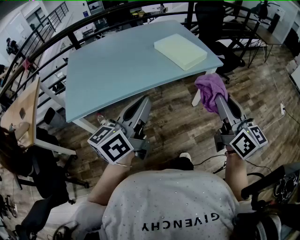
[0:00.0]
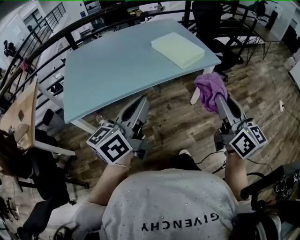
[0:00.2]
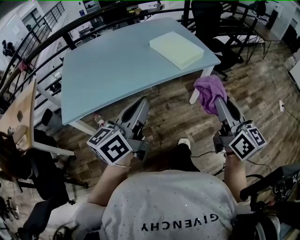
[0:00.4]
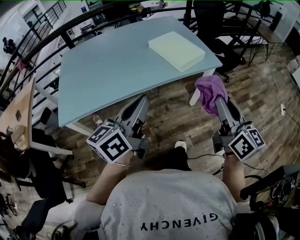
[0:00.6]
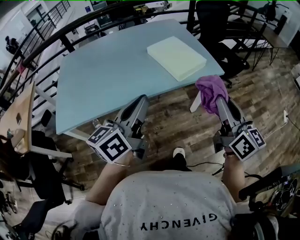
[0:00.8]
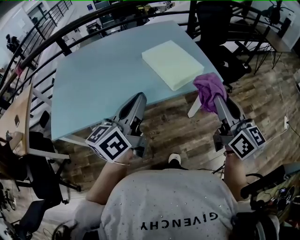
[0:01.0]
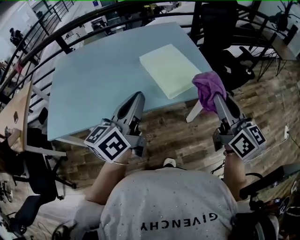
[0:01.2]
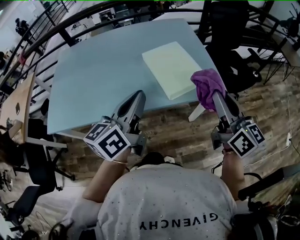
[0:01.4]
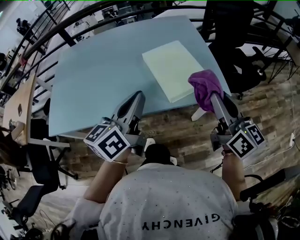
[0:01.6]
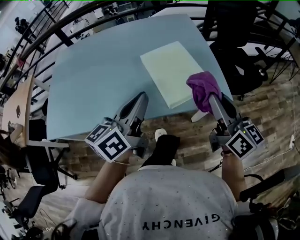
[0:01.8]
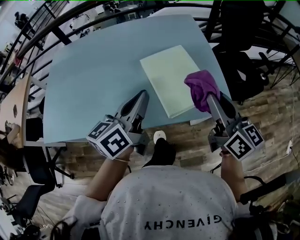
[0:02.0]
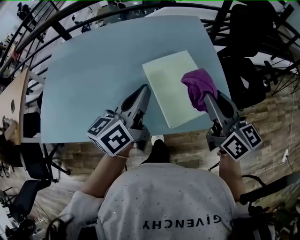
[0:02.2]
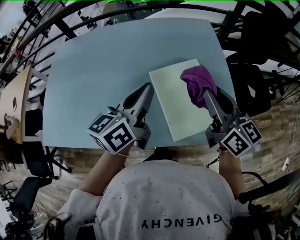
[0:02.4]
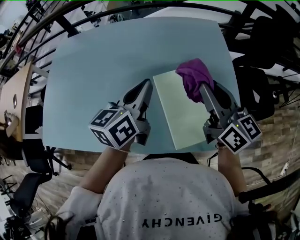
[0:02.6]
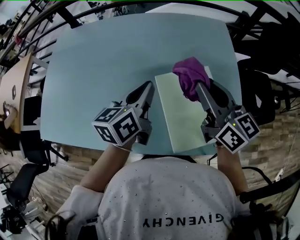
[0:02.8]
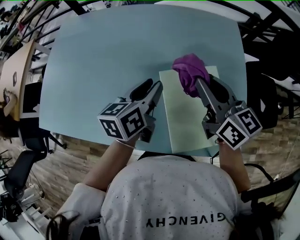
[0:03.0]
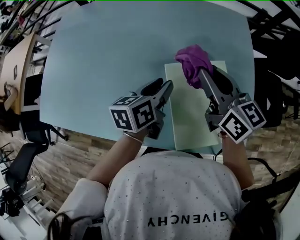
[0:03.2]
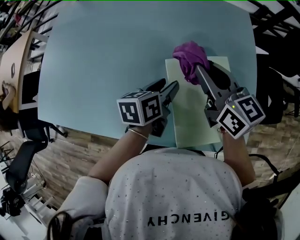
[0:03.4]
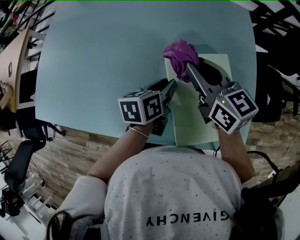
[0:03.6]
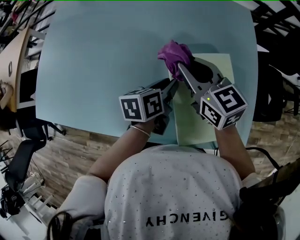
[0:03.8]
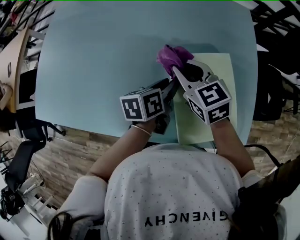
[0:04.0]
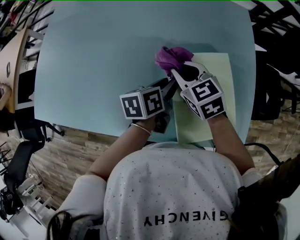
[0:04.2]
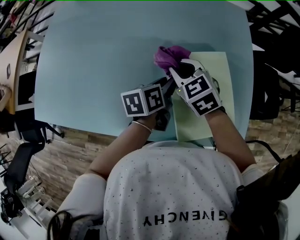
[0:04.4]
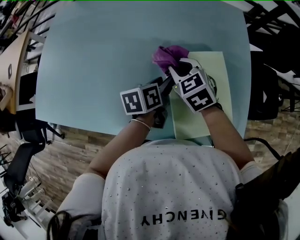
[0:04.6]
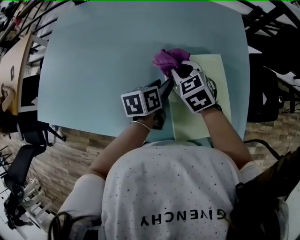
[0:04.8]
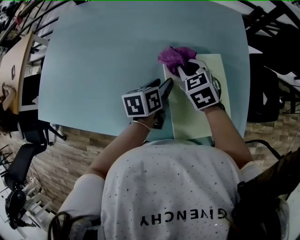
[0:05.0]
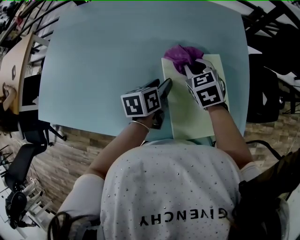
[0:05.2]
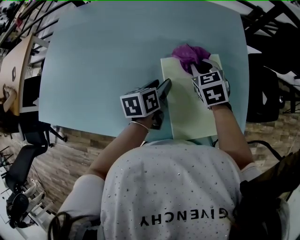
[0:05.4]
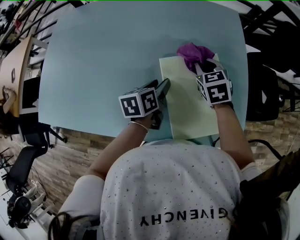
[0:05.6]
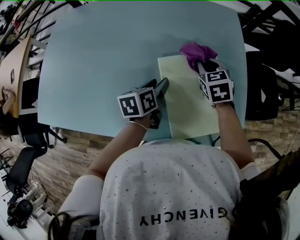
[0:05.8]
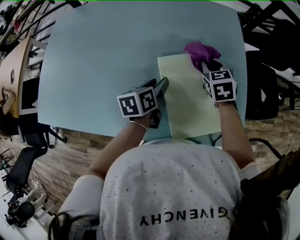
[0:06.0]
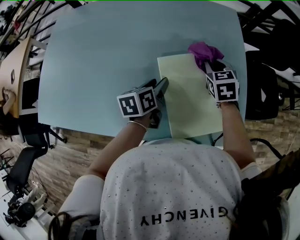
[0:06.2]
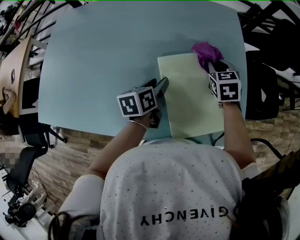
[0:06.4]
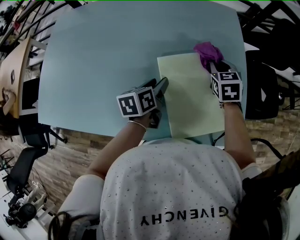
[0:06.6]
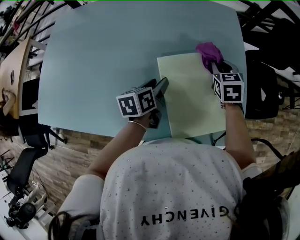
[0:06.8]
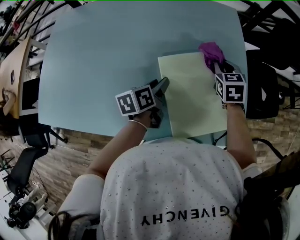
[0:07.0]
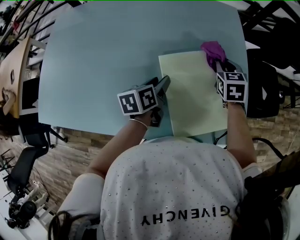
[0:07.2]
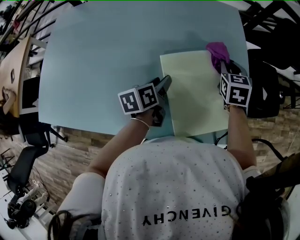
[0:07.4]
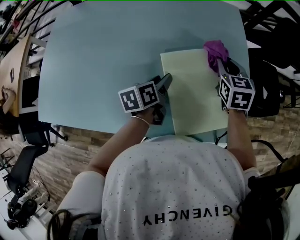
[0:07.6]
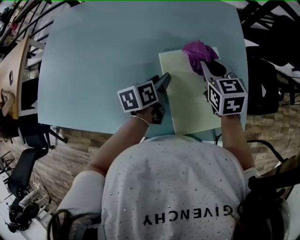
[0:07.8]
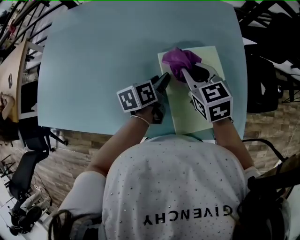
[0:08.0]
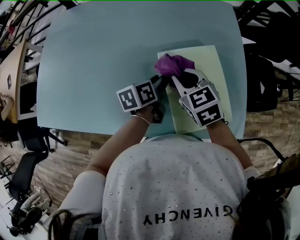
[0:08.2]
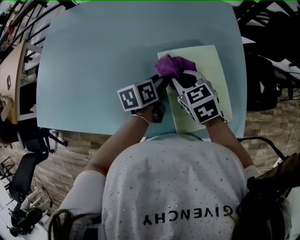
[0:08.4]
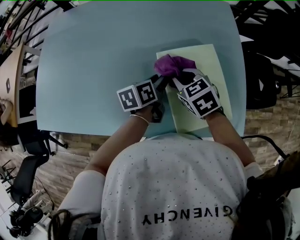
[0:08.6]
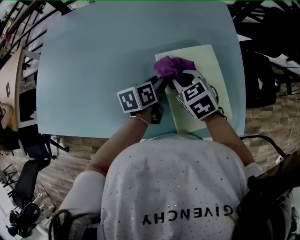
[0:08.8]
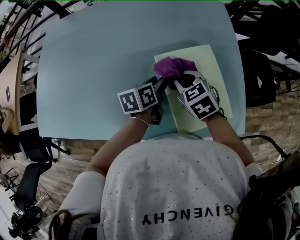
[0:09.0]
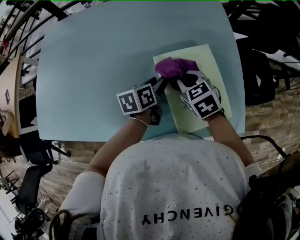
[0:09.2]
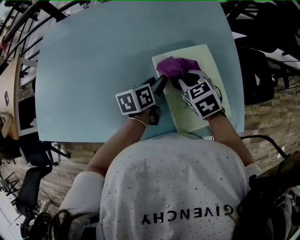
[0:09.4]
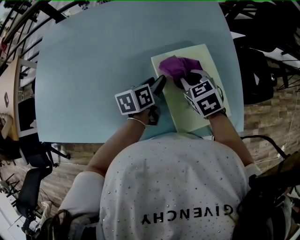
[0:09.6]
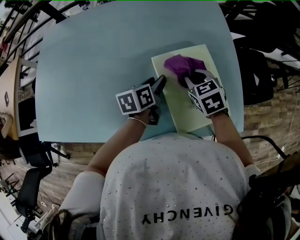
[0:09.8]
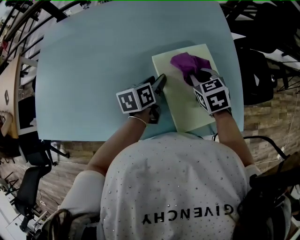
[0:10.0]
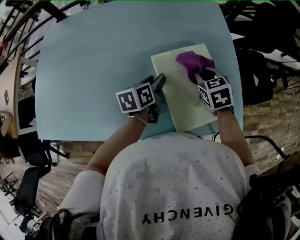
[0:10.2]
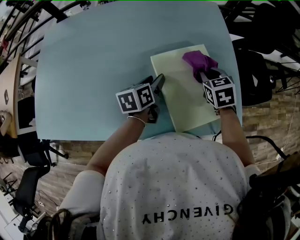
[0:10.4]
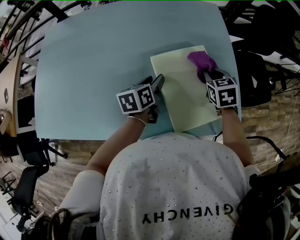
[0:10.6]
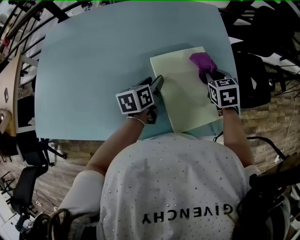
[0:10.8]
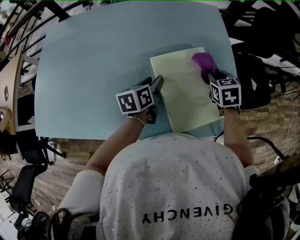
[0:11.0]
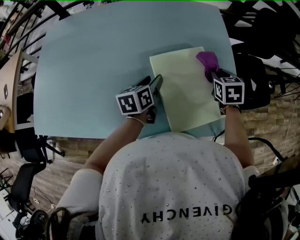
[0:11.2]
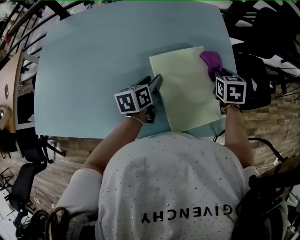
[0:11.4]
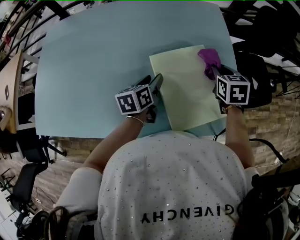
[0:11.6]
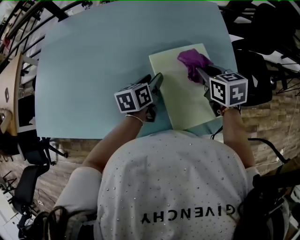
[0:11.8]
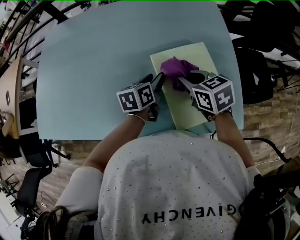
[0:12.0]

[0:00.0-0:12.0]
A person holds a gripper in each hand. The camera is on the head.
0:00.0 to 0:01.6: The left gripper heads forward and to the right, covering about 35 cm, while the right gripper shifts approximately 35 cm forward.
0:01.6 to 0:03.0: The left gripper moves forward and downward, roughly 35 cm, changes its angle by some 30 degrees, and opens its fingers. Meanwhile the right gripper goes roughly 35 cm forward, and turns by some 30 degrees.
0:03.0 to 0:04.4: The left gripper moves downward, approximately 10 cm, and rotates approximately 20 degrees; the right gripper goes roughly 20 cm downward and to the left, and tips its fingers downward by roughly 30 degrees.
0:04.4 to 0:06.0: The right gripper shifts approximately 15 cm to the right, and changes its angle by about 20 degrees.
0:06.0 to 0:07.6: The right gripper changes place by approximately 5 cm.
0:07.6 to 0:09.0: The right gripper moves to the left and backward, approximately 15 cm, and turns by roughly 30 degrees.
0:09.0 to 0:10.4: The right gripper goes some 15 cm to the right.
0:10.4 to 0:12.0: The right gripper shifts approximately 10 cm to the left and backward, and swivels some 20 degrees.

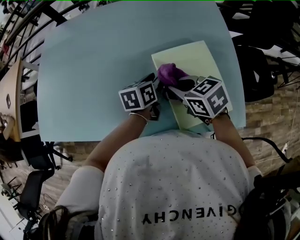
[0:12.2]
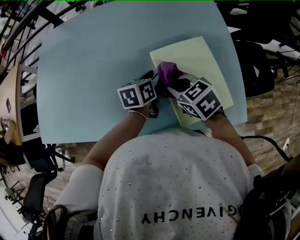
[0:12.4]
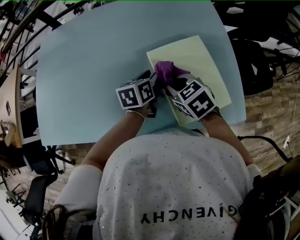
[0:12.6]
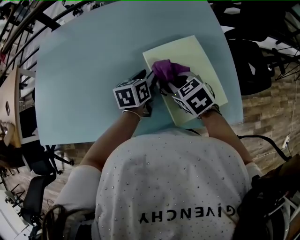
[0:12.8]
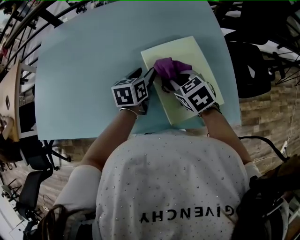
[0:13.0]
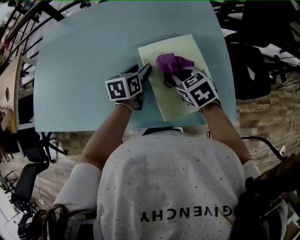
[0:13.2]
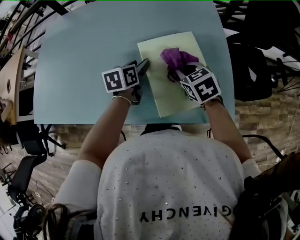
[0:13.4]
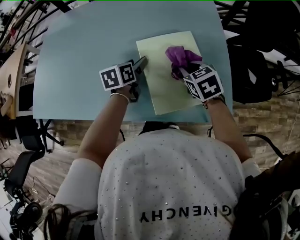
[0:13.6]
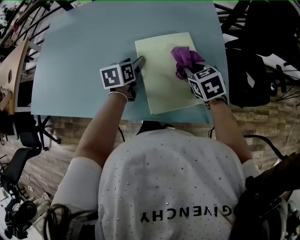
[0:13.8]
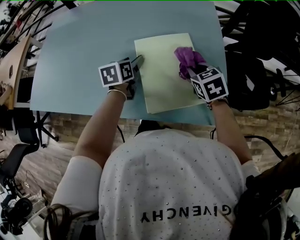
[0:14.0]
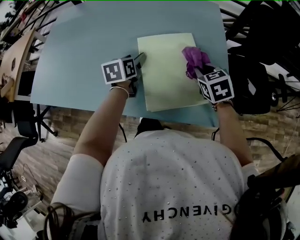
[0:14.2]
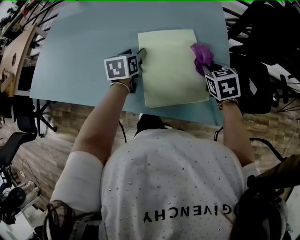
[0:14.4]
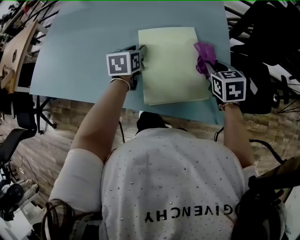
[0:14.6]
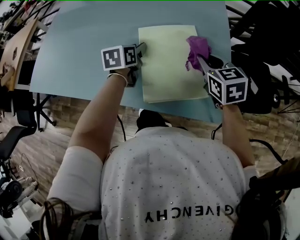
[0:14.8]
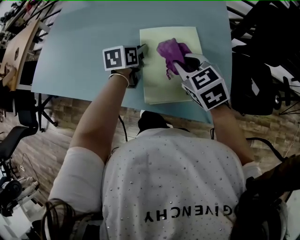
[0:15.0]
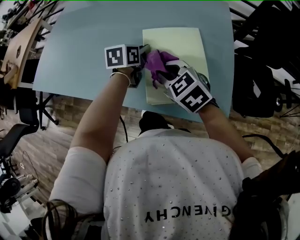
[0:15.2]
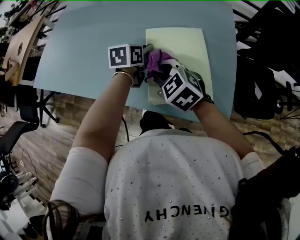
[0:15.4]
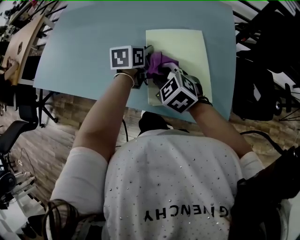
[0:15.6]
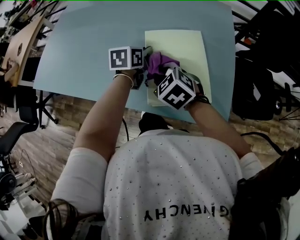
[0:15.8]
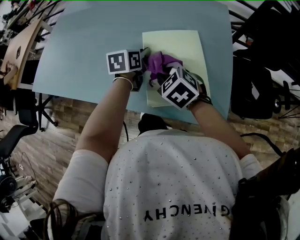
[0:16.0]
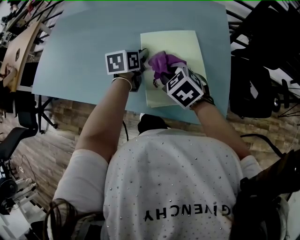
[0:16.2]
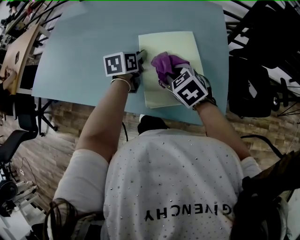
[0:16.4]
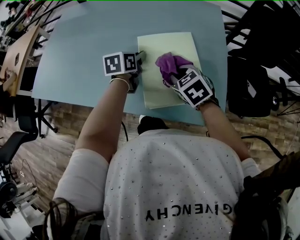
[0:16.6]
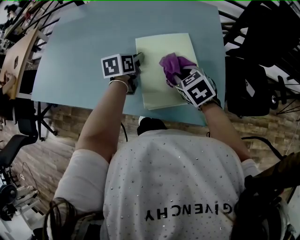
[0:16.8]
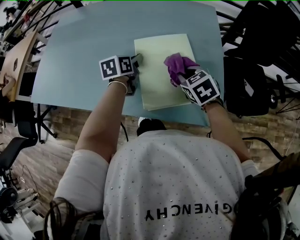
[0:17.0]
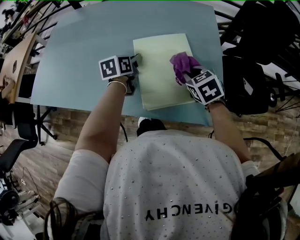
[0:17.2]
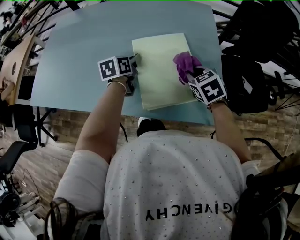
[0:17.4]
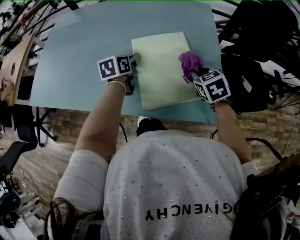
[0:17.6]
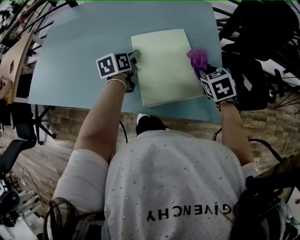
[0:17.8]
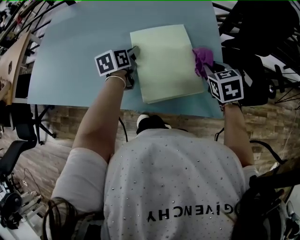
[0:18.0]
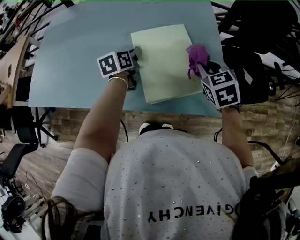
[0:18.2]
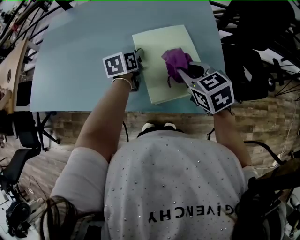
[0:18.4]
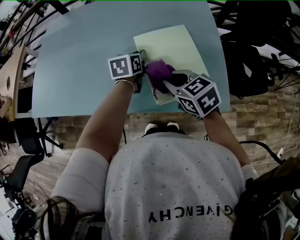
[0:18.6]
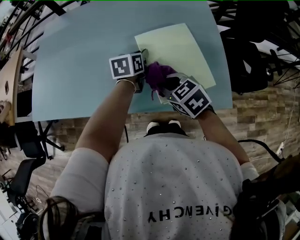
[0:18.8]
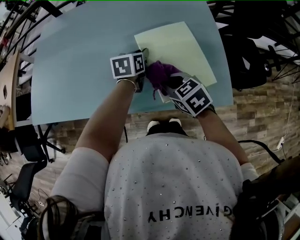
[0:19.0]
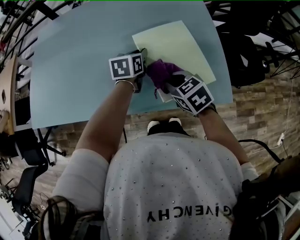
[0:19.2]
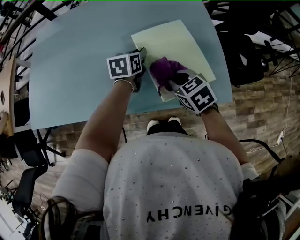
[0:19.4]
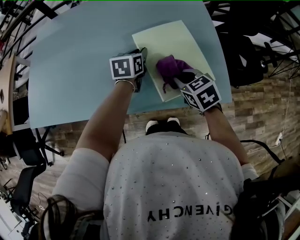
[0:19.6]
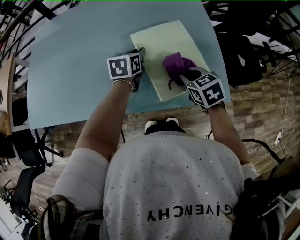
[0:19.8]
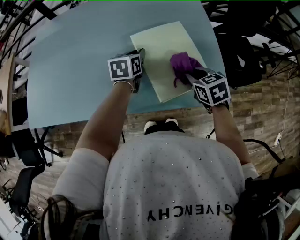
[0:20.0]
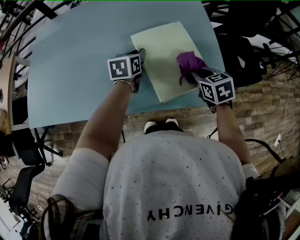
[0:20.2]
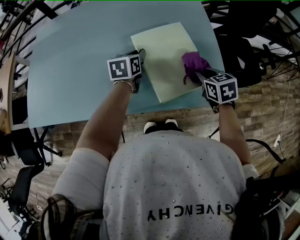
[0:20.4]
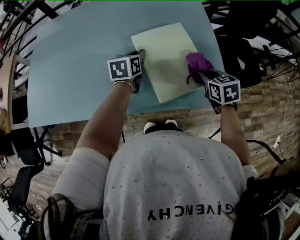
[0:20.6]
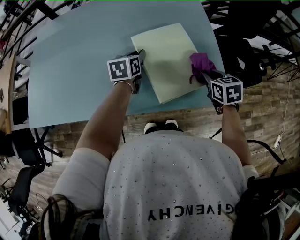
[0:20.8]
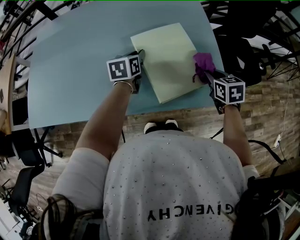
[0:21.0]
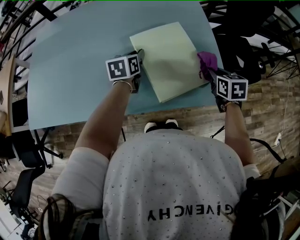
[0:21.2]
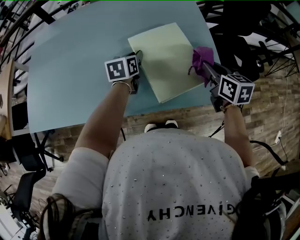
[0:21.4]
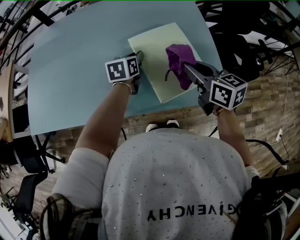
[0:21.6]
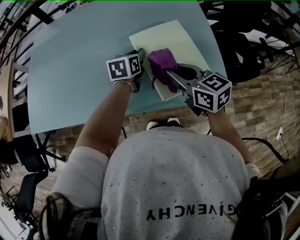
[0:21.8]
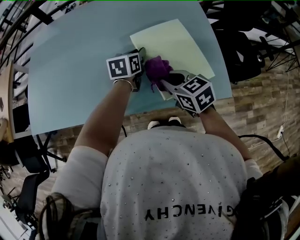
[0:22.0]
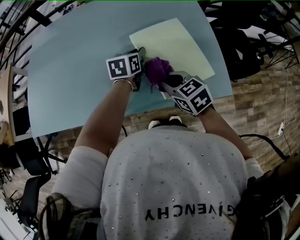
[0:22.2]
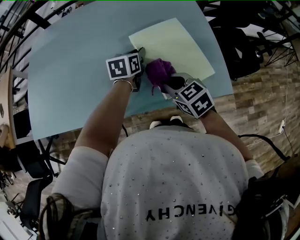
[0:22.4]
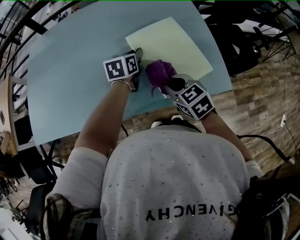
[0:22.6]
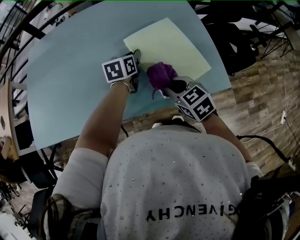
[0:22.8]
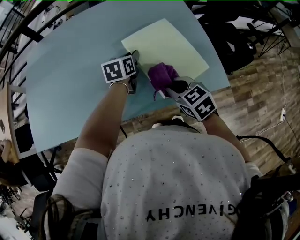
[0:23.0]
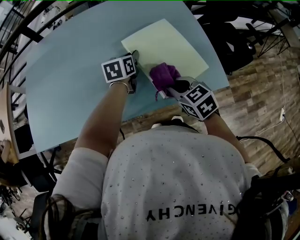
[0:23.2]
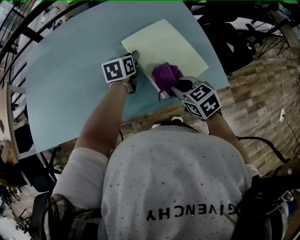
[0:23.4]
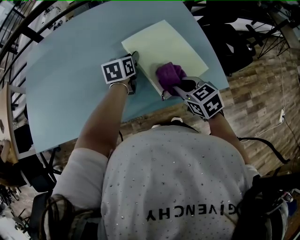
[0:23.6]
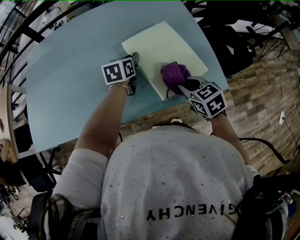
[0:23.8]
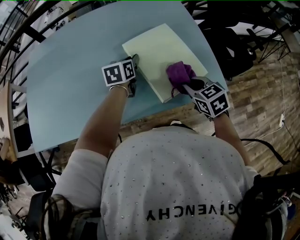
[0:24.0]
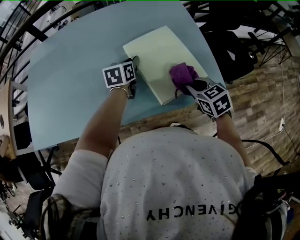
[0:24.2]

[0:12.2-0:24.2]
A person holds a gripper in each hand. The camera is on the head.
0:12.2 to 0:13.8: The right gripper moves to the right, some 15 cm, and rotates roughly 20 degrees.
0:13.8 to 0:15.2: The left gripper closes up; the right gripper travels to the left and backward by roughly 15 cm, and rotates about 30 degrees.
0:15.2 to 0:16.6: The right gripper shifts some 10 cm to the right.
0:16.6 to 0:18.2: The right gripper heads to the right and upward, covering roughly 10 cm, and changes its angle by some 20 degrees.
0:18.2 to 0:19.8: The right gripper moves to the left and downward, approximately 10 cm.
0:19.8 to 0:21.2: The right gripper heads to the right, covering roughly 15 cm, and changes its angle by roughly 20 degrees.
0:21.2 to 0:22.6: The right gripper is displaced to the left by about 25 cm, and turns by about 30 degrees.
0:22.6 to 0:24.2: The right gripper is displaced to the right by roughly 10 cm.
